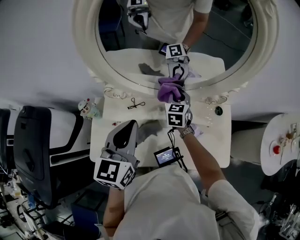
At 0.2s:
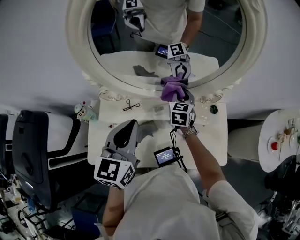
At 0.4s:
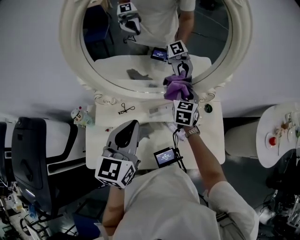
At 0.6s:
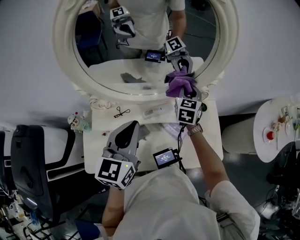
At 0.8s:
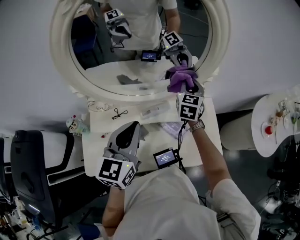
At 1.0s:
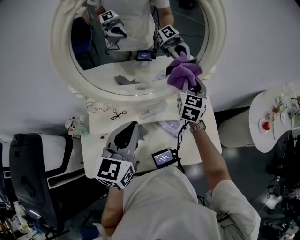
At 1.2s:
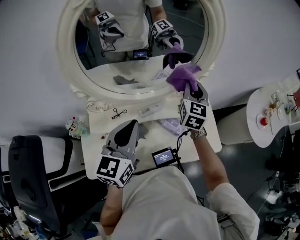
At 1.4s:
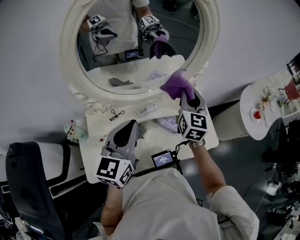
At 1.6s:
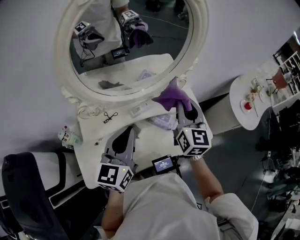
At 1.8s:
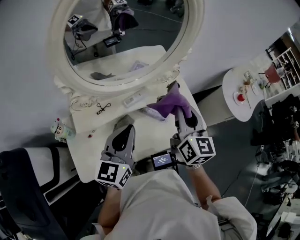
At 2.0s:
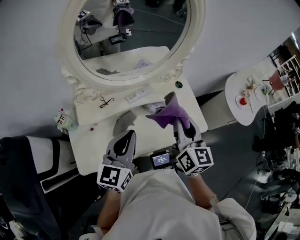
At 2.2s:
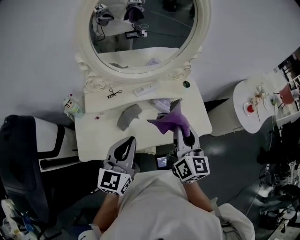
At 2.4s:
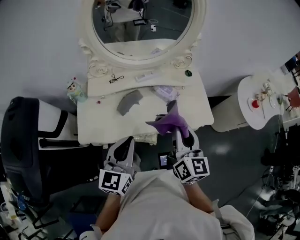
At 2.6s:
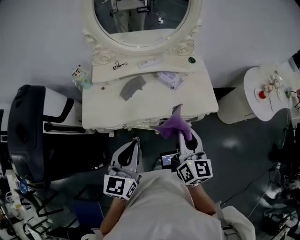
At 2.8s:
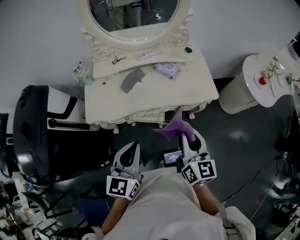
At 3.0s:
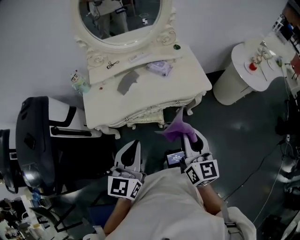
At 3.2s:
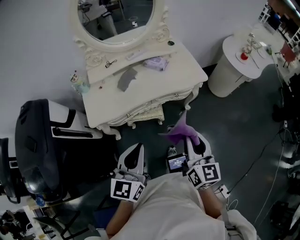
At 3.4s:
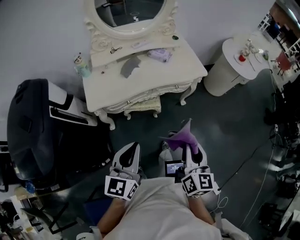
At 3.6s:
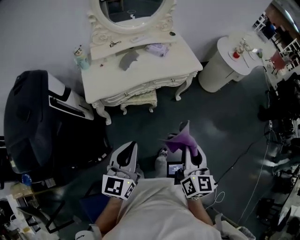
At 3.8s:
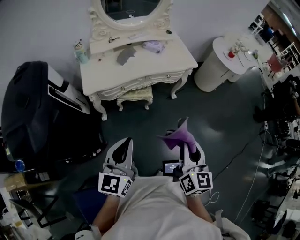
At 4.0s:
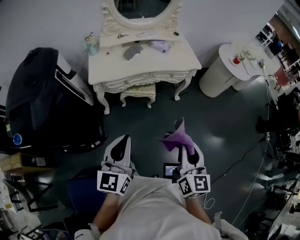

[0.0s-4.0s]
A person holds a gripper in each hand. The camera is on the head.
0.0s to 1.4s: The right gripper shifts some 25 cm upward, to the right and backward, and turns by about 30 degrees. Meanwhile the left gripper swivels roughly 20 degrees.
1.4s to 2.6s: Both grippers move backward, some 35 cm. The right gripper swivels roughly 30 degrees.
2.6s to 4.0s: The pair of grippers is taken backward, some 40 cm.

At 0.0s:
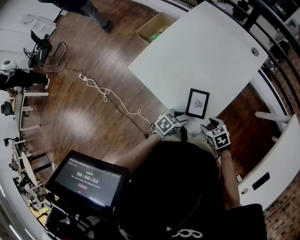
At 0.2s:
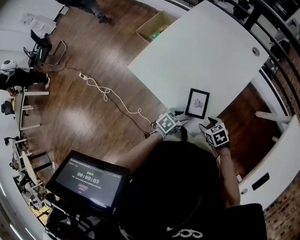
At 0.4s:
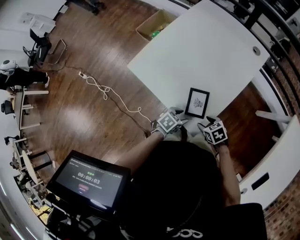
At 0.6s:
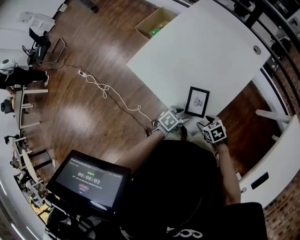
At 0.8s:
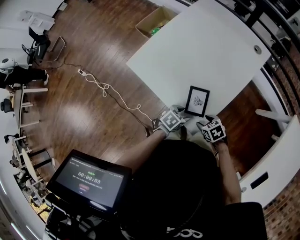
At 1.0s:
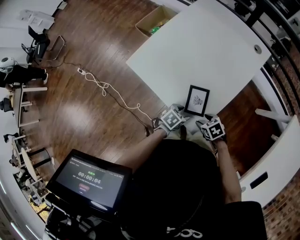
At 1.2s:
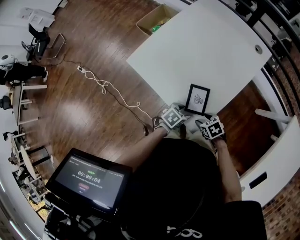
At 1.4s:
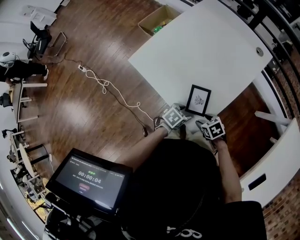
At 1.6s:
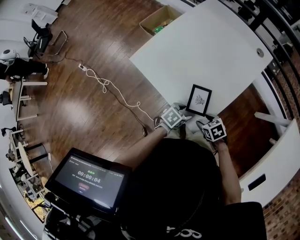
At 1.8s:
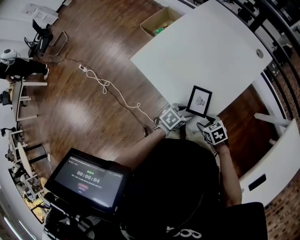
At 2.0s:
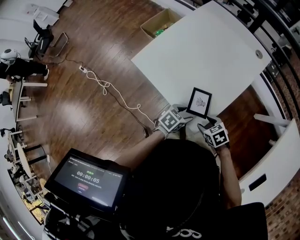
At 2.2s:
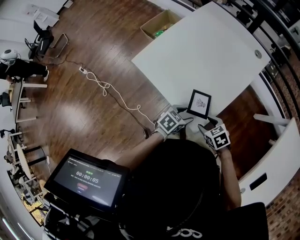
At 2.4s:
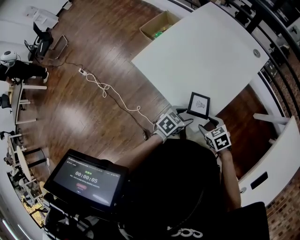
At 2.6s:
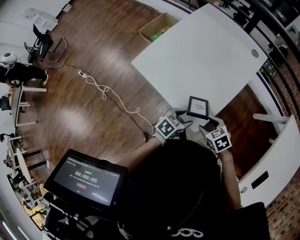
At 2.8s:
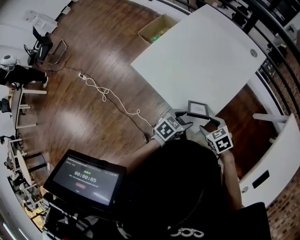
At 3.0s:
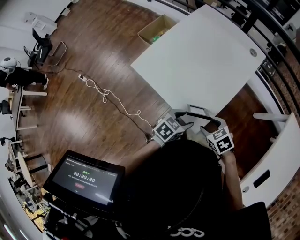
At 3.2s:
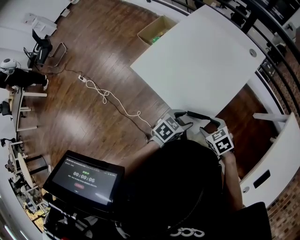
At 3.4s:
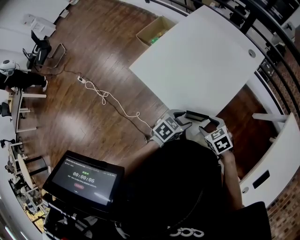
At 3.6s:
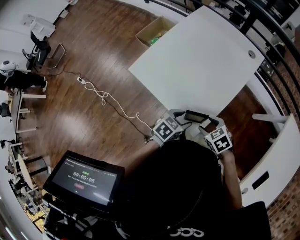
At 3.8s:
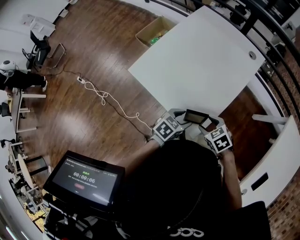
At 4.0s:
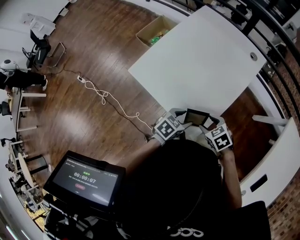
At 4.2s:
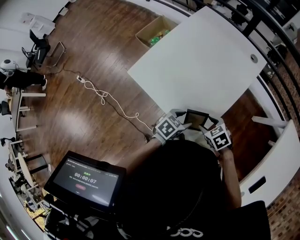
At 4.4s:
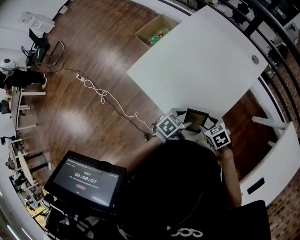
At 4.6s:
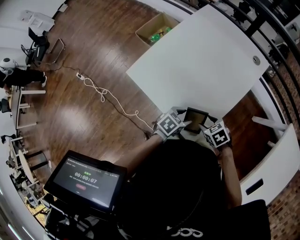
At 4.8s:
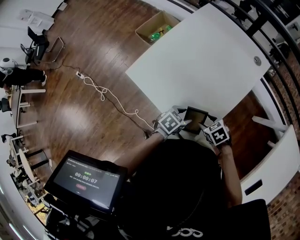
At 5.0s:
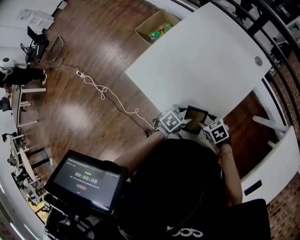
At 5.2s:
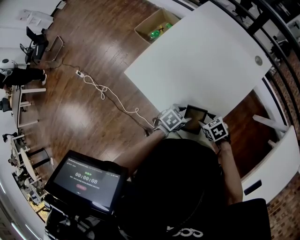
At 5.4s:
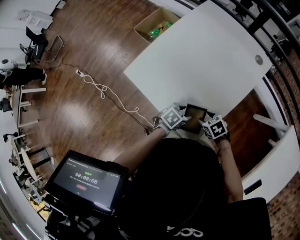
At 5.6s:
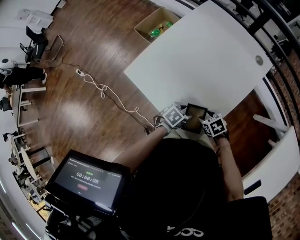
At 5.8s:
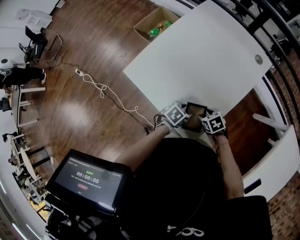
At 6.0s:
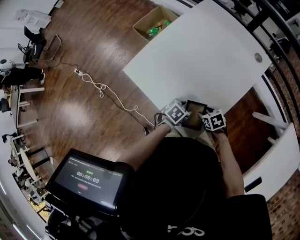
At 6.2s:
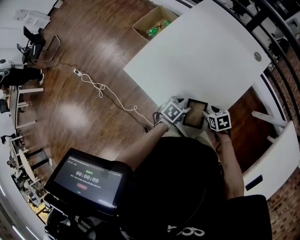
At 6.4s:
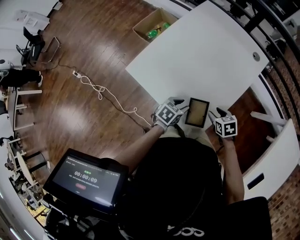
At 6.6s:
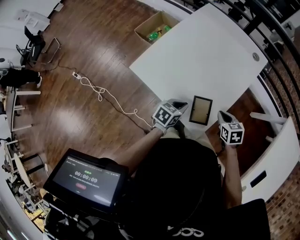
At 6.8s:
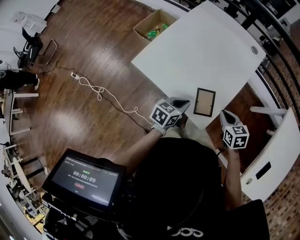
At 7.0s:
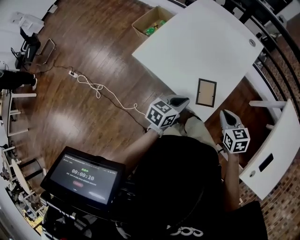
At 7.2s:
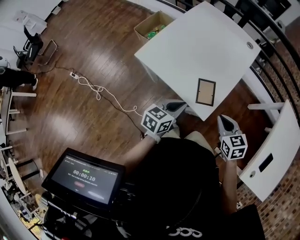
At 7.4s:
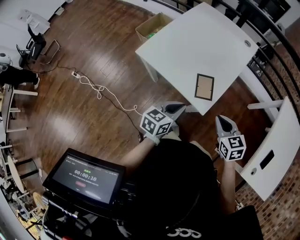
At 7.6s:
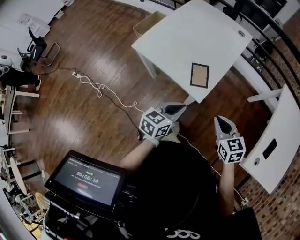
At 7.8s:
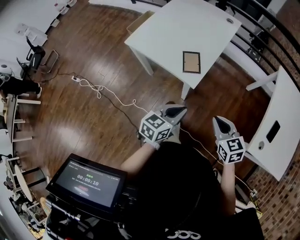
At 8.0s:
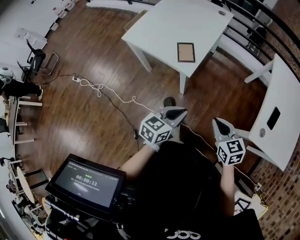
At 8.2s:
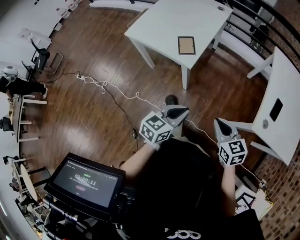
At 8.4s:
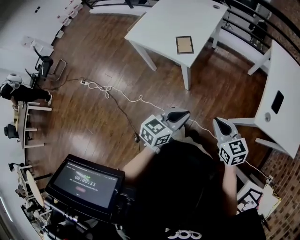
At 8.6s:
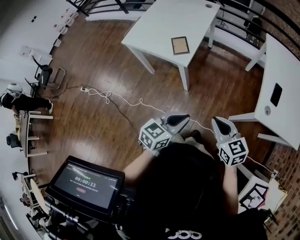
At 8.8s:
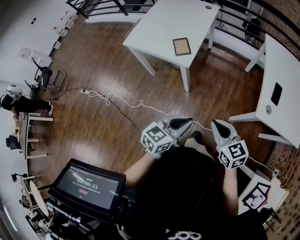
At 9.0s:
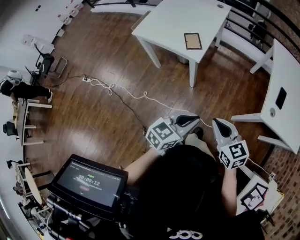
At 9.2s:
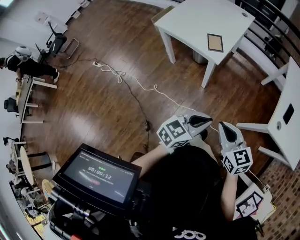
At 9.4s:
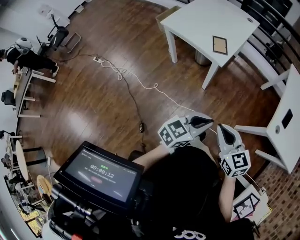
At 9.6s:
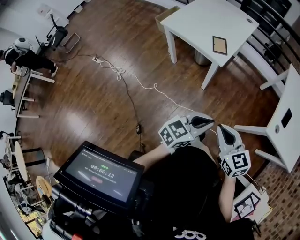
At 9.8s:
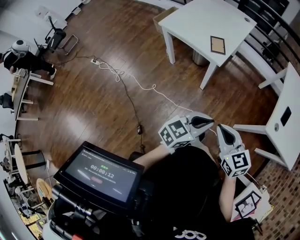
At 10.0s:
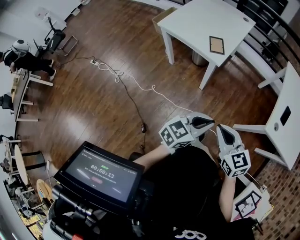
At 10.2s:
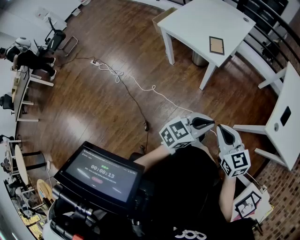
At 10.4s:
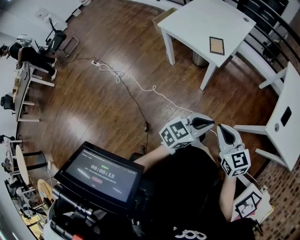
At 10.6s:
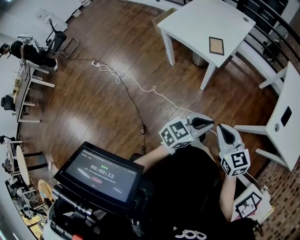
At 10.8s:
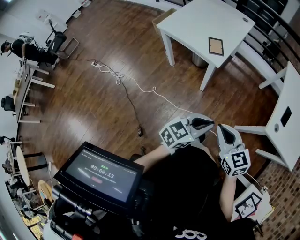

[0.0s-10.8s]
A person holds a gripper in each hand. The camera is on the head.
0.0s to 1.6s: The grippers stay close to where they were, moving slightly.
1.6s to 3.0s: The grippers both shift upward by roughly 10 cm.
3.0s to 4.6s: The left gripper ends up roughly 10 cm from where it was. Meanwhile the right gripper shifts by about 10 cm.
4.6s to 6.2s: The grippers both shift downward by approximately 5 cm.
6.2s to 7.8s: The left gripper moves about 40 cm, tips its fingers upward by about 30 degrees, and closes up, while the right gripper moves some 40 cm, turns by approximately 40 degrees, and closes its fingers.
7.8s to 9.2s: Both grippers move backward, approximately 25 cm.
9.2s to 10.8s: The grippers move only a little.

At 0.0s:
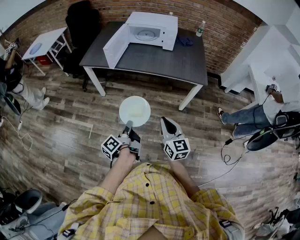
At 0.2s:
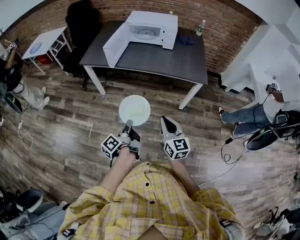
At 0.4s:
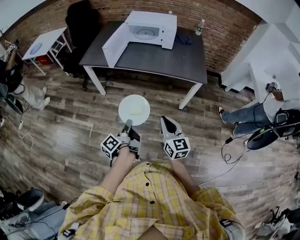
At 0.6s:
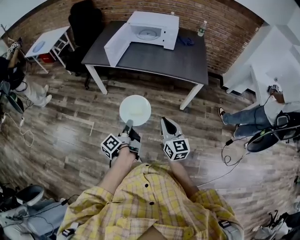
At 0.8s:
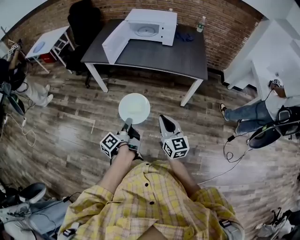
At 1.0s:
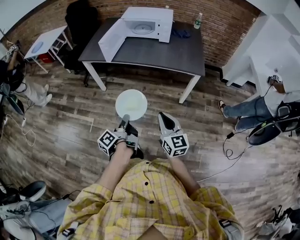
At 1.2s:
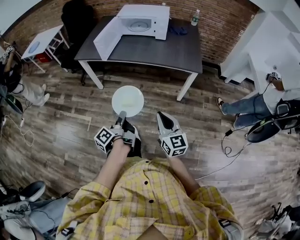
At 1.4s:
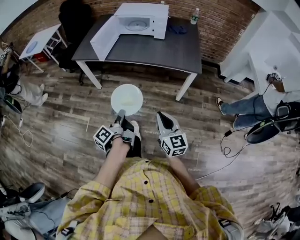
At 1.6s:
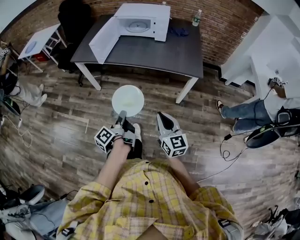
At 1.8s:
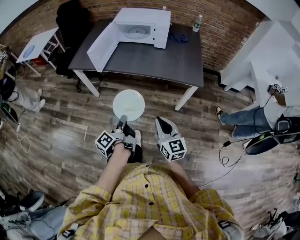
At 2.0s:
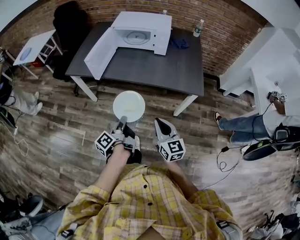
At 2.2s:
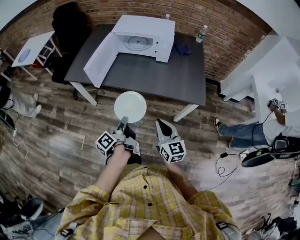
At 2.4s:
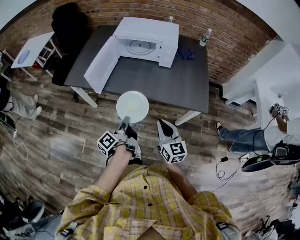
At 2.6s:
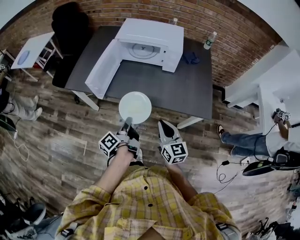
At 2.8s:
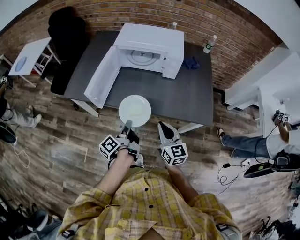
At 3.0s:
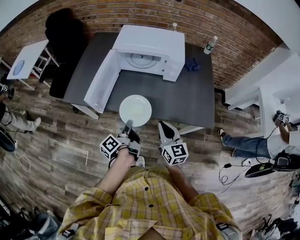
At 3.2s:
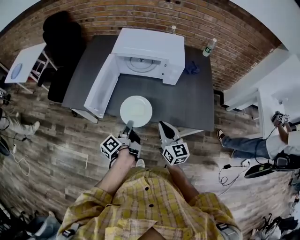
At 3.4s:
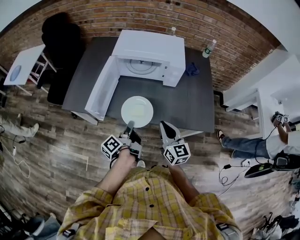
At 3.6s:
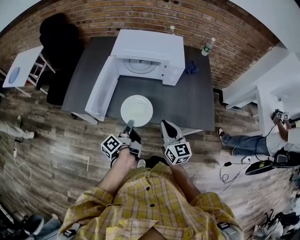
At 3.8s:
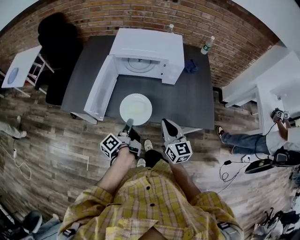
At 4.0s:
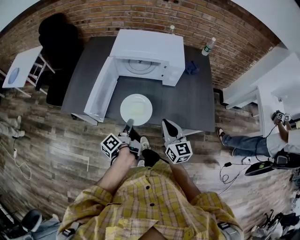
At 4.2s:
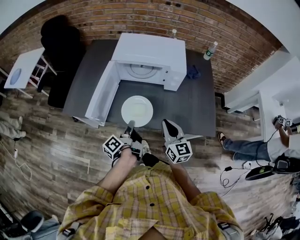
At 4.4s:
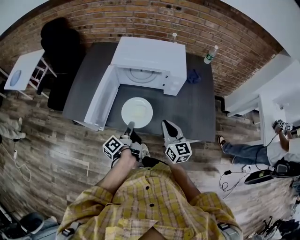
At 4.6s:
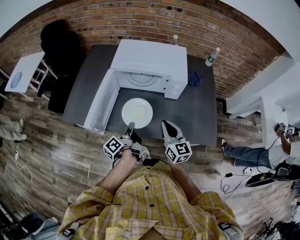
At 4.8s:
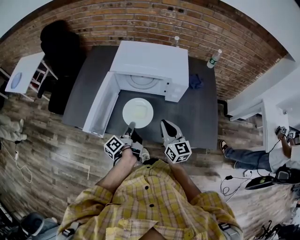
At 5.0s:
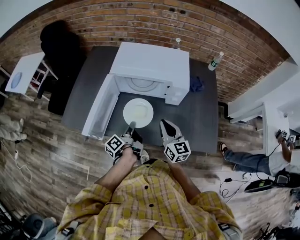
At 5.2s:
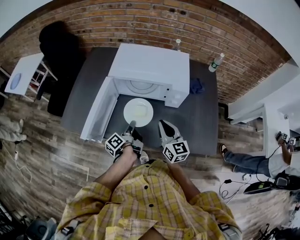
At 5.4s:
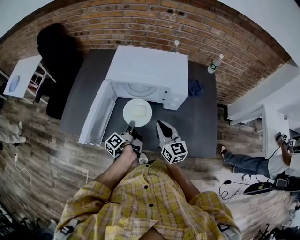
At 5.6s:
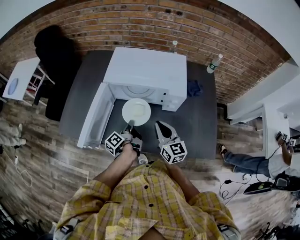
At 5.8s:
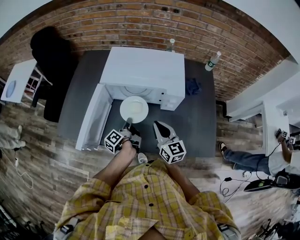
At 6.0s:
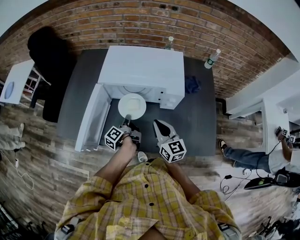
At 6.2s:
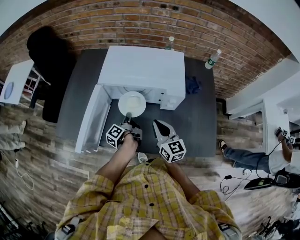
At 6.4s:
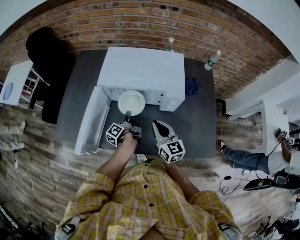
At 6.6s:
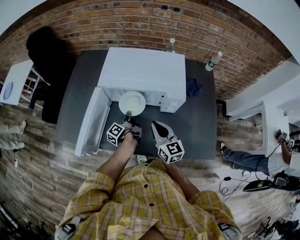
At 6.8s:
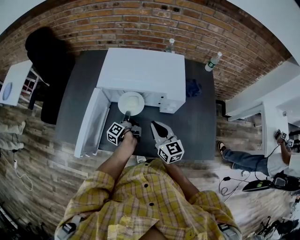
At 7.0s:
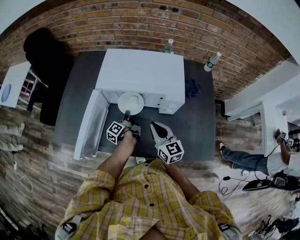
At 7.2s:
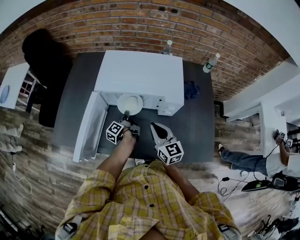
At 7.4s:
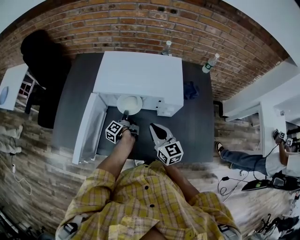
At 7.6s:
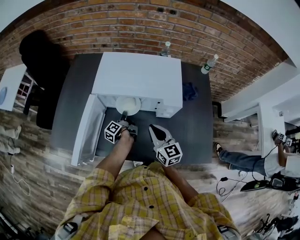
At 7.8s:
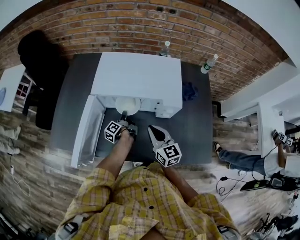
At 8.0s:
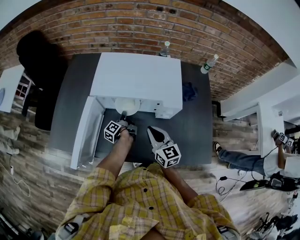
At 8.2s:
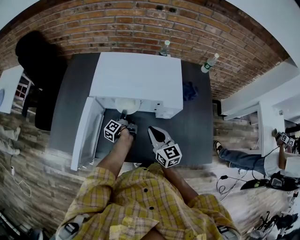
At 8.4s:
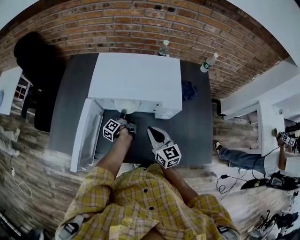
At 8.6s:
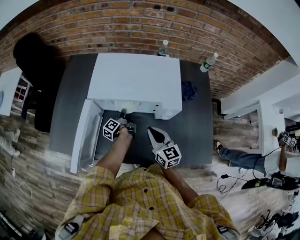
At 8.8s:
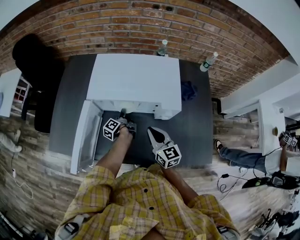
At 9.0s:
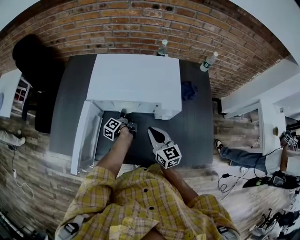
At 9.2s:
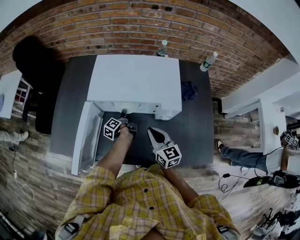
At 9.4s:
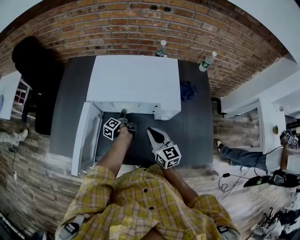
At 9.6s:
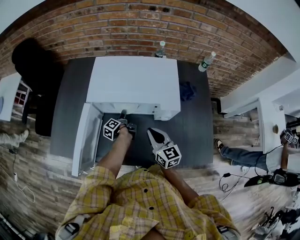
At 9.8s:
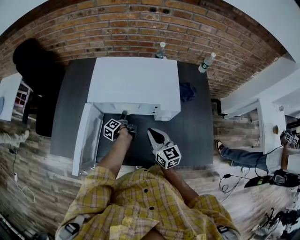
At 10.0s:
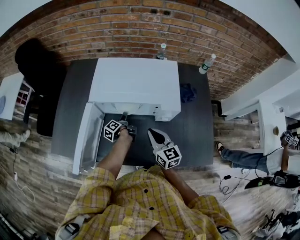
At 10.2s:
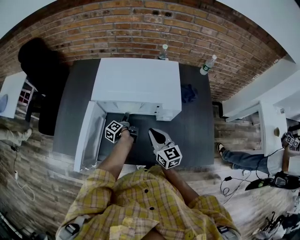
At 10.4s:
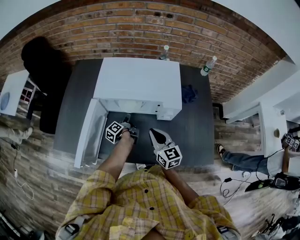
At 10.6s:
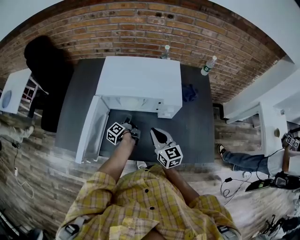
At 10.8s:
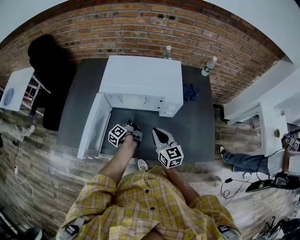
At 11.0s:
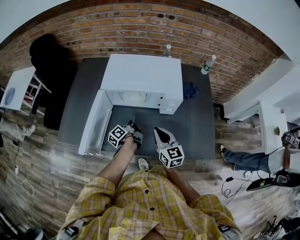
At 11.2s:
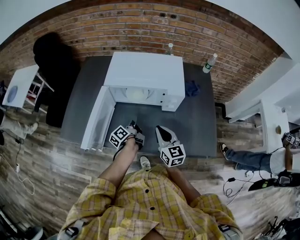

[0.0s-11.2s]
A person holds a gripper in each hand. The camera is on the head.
0.0s to 1.6s: The right gripper moves about 5 cm.
1.6s to 3.2s: The right gripper ends up roughly 40 cm from where it was.
3.2s to 4.8s: The right gripper shifts by approximately 15 cm.
4.8s to 6.4s: The right gripper changes place by some 10 cm.
9.6s to 11.2s: The right gripper shifts by approximately 10 cm.
